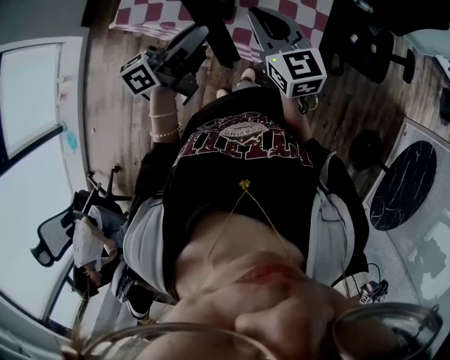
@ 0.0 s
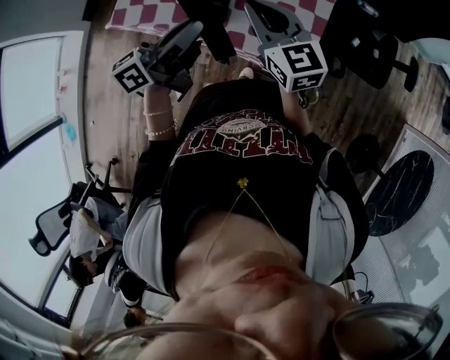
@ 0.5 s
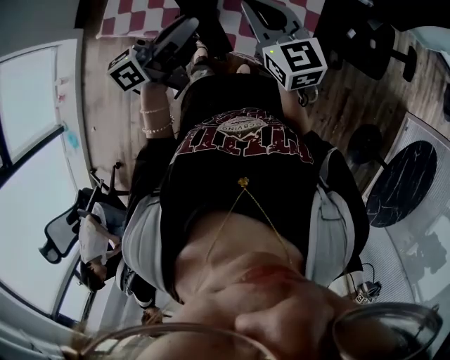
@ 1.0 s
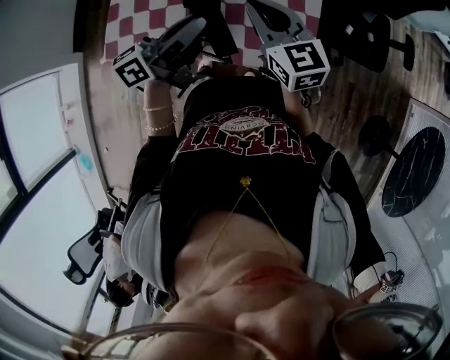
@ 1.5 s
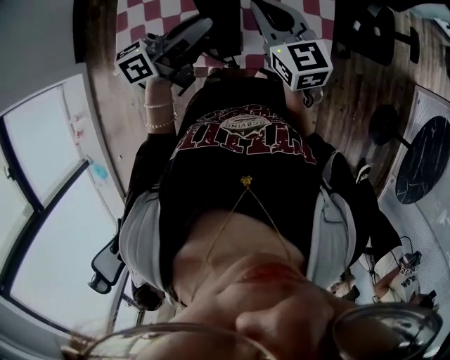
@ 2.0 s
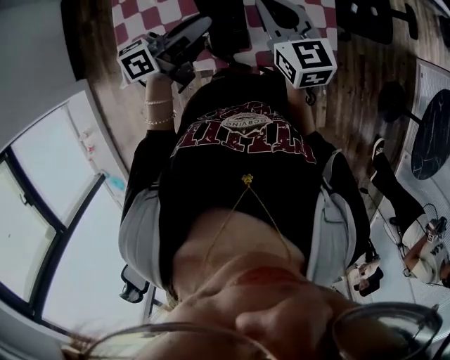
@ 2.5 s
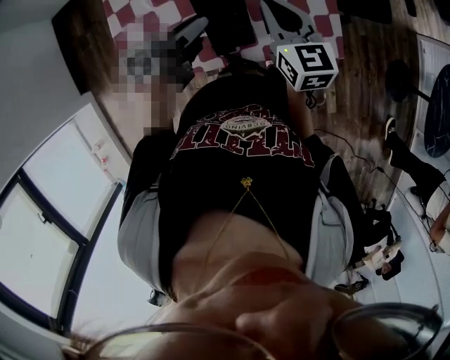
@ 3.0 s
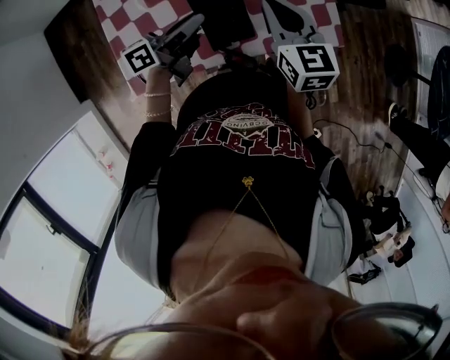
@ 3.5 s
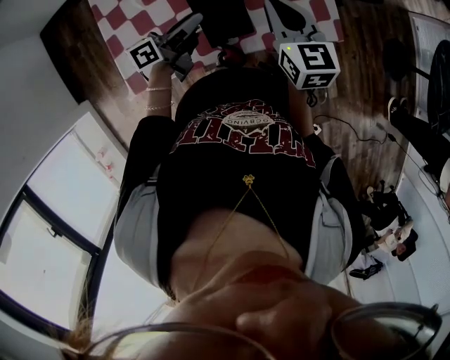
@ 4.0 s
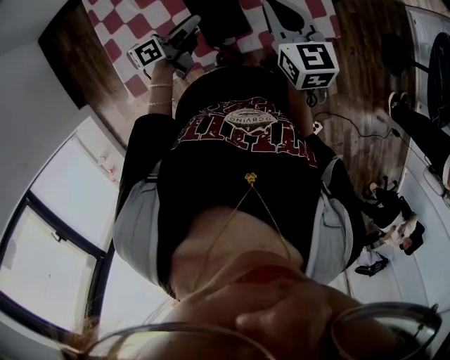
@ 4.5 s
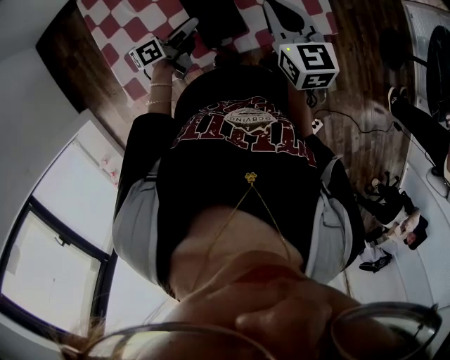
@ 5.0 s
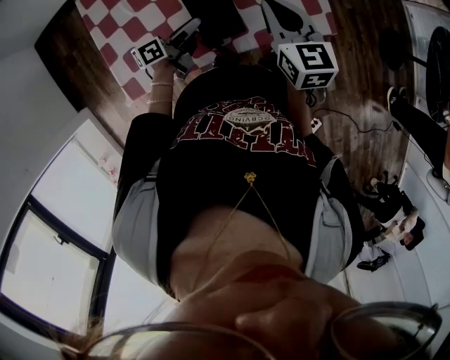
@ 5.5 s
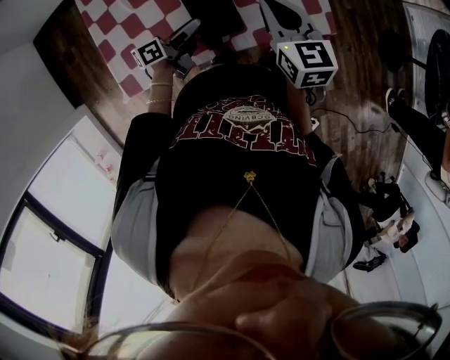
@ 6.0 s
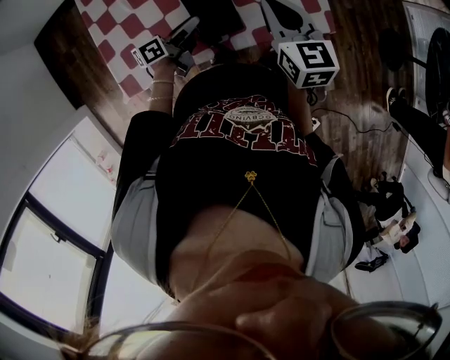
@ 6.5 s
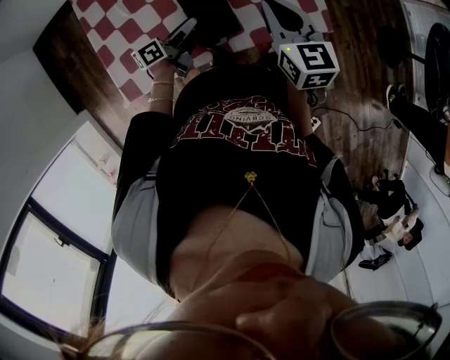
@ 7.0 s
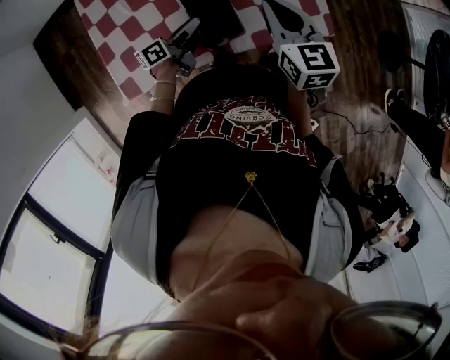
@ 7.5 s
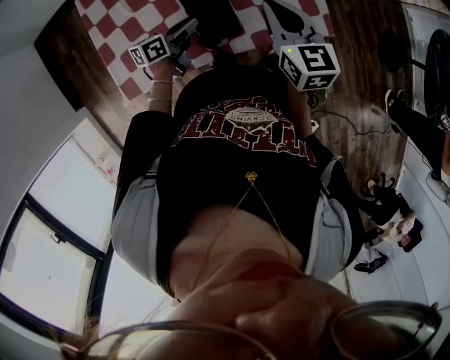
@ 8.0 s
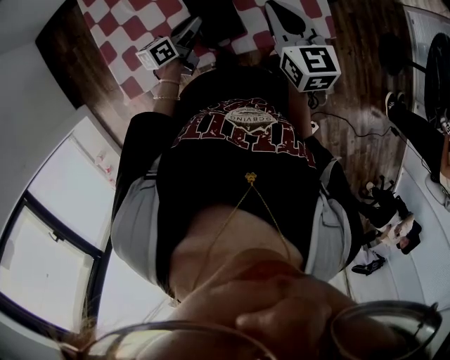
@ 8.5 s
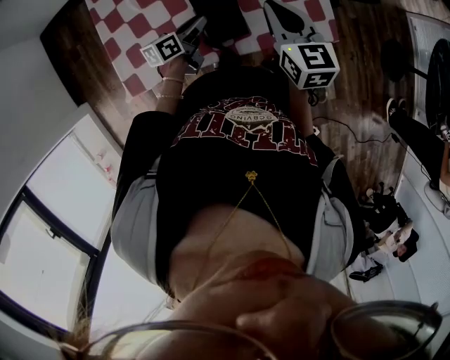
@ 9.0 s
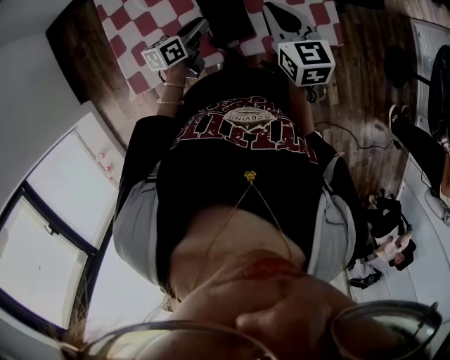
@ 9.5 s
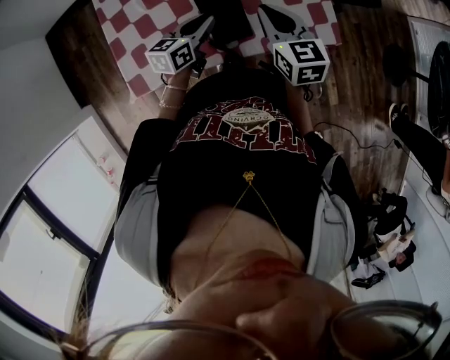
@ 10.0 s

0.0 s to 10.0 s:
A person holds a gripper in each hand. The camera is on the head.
0.0 to 2.0 s: The grippers both shift forward by roughly 10 cm.
2.0 to 4.0 s: The right gripper ends up approximately 5 cm from where it was, and changes its angle by roughly 30 degrees. Meanwhile the left gripper goes roughly 15 cm downward and to the left.
4.0 to 6.0 s: The left gripper heads downward, covering some 10 cm.
6.0 to 8.0 s: The grippers move only a little.
8.0 to 10.0 s: The left gripper goes some 5 cm upward, and rotates about 20 degrees.

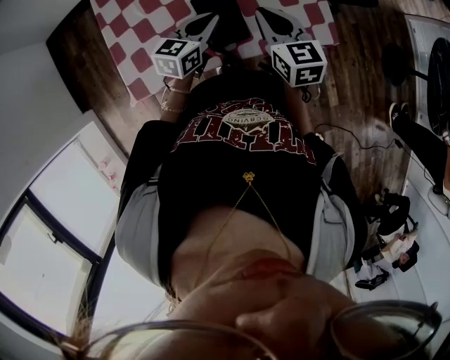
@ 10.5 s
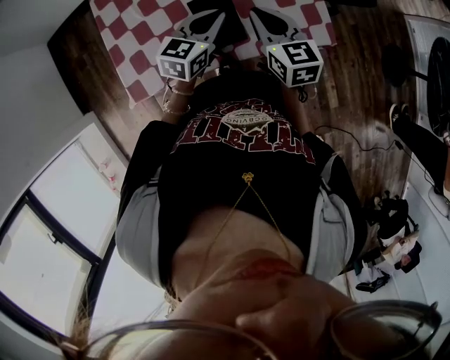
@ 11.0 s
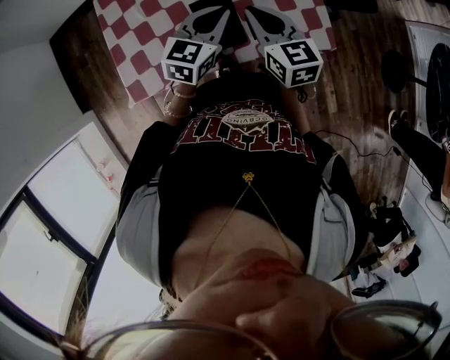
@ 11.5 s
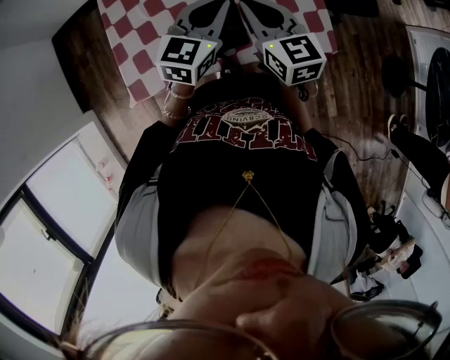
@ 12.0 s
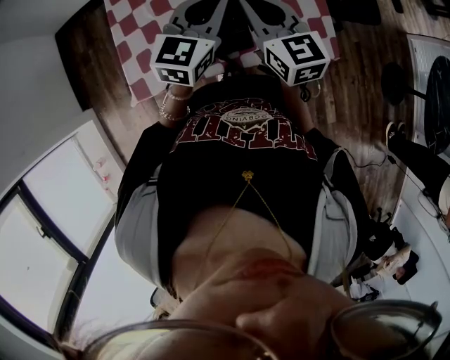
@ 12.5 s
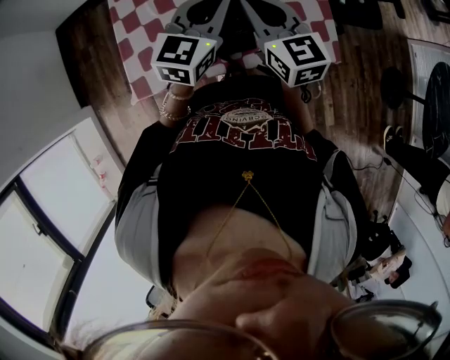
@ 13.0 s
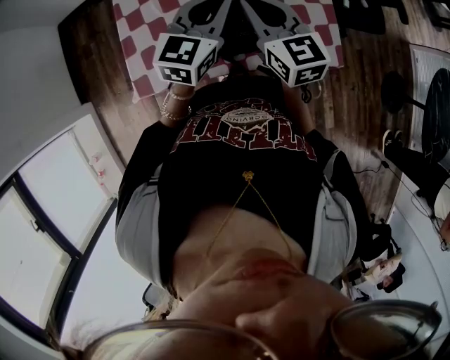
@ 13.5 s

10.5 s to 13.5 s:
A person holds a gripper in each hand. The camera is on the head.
10.5 to 12.0 s: The left gripper travels upward by some 15 cm, and turns by some 20 degrees. Meanwhile the right gripper moves upward, some 5 cm.
12.0 to 13.5 s: There are only small adjustments of the grippers.

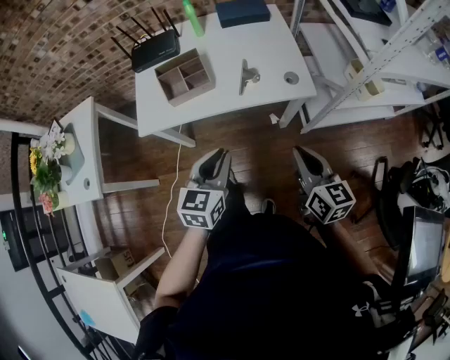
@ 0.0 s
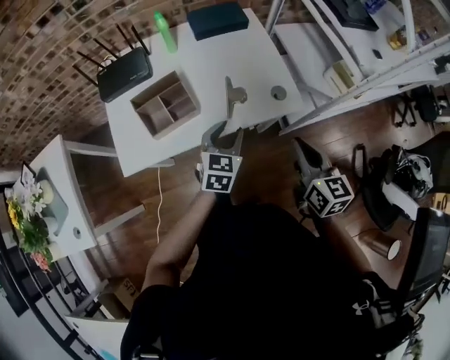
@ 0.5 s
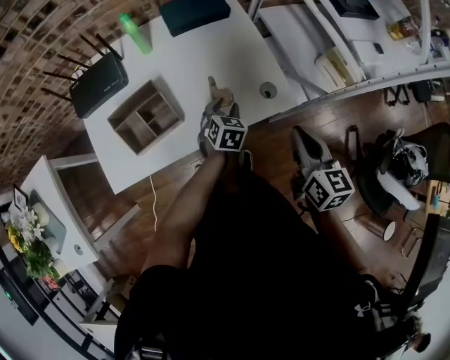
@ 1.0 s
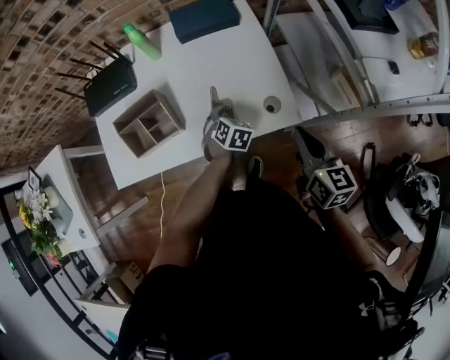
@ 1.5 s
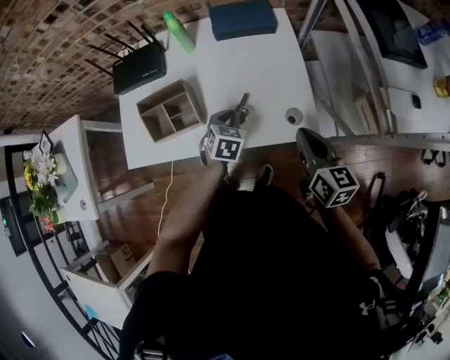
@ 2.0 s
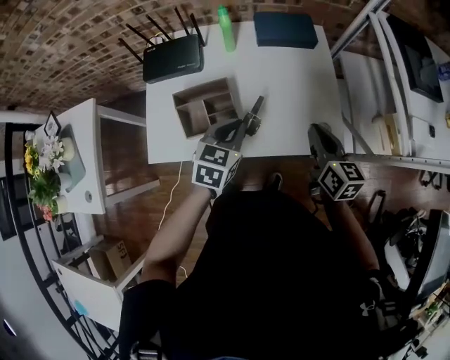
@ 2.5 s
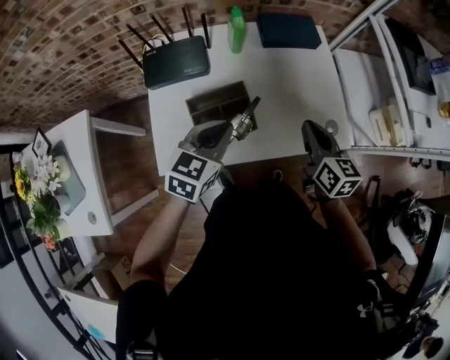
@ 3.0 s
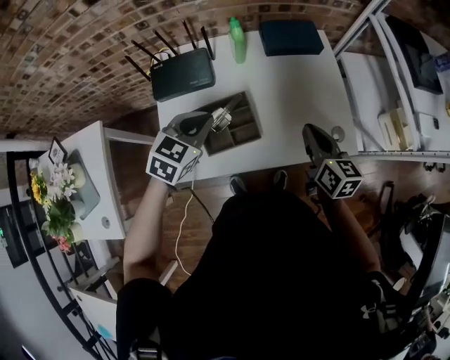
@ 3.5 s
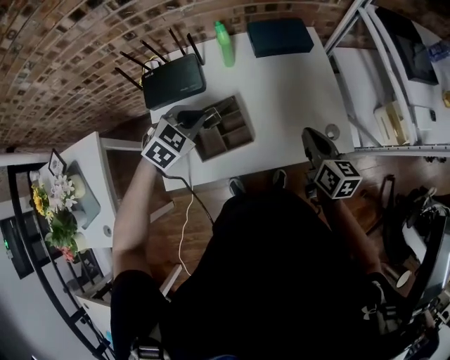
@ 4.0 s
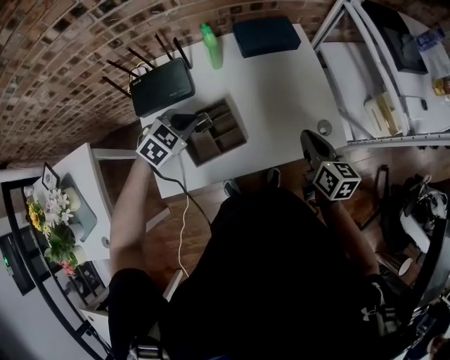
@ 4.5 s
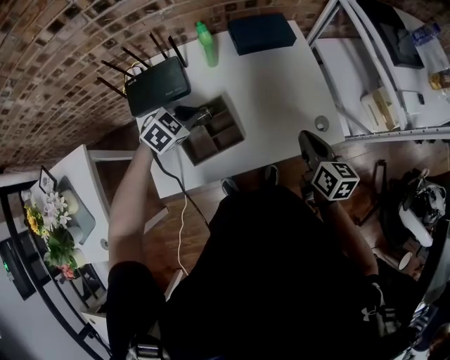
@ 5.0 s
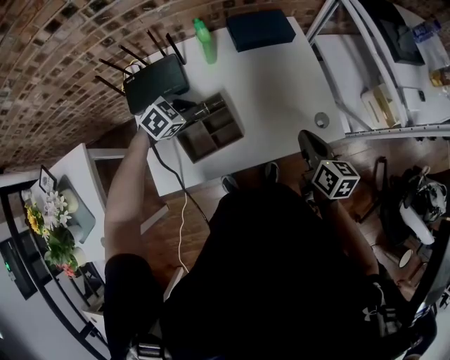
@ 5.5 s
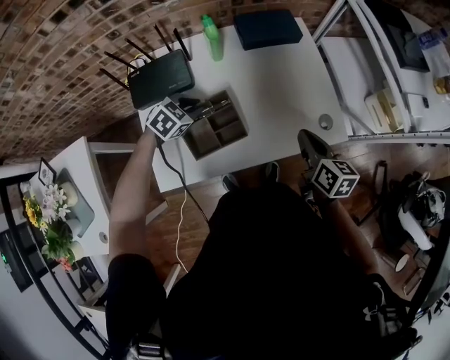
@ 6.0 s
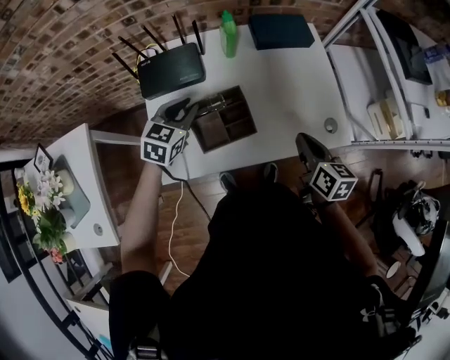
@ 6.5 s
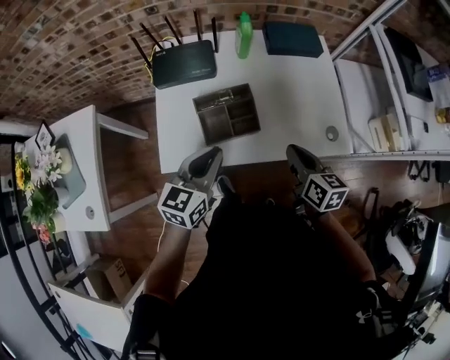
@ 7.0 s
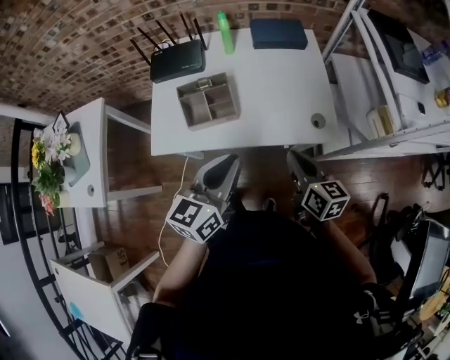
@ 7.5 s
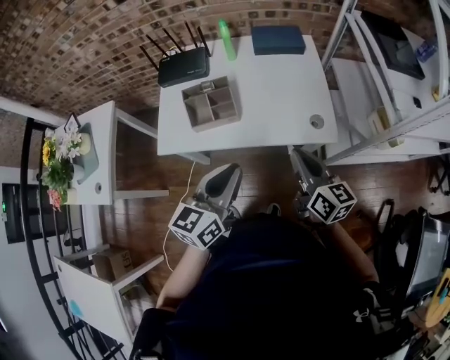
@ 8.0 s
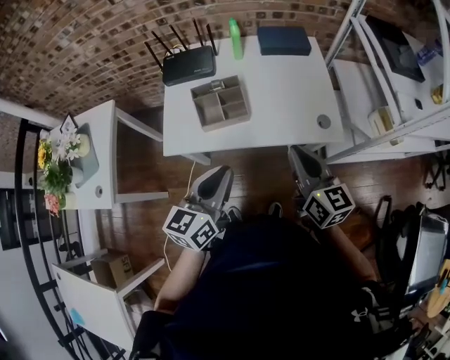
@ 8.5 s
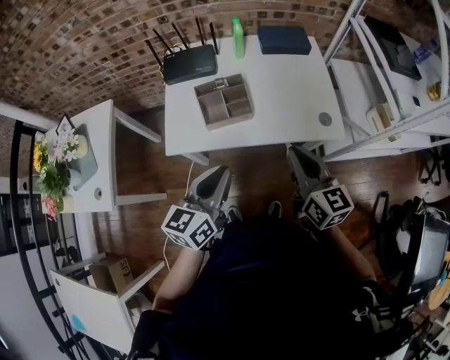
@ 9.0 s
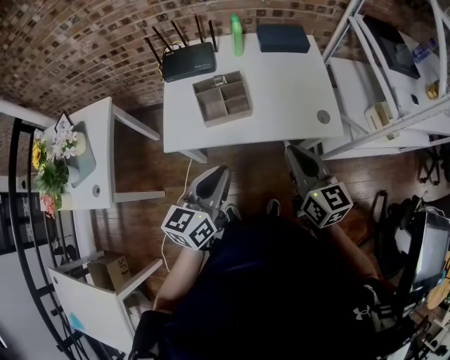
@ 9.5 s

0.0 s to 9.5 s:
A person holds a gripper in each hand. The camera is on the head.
0.0 to 2.0 s: The left gripper heads forward and downward, covering roughly 35 cm, changes its angle by approximately 30 degrees, and opens and closes again. Meanwhile the right gripper goes about 25 cm forward.
2.0 to 4.0 s: The right gripper is displaced to the left by roughly 15 cm, while the left gripper moves to the left and upward, about 25 cm, and swivels roughly 40 degrees.
4.0 to 5.5 s: The left gripper shifts approximately 10 cm downward.
5.5 to 7.5 s: The left gripper shifts by about 35 cm, and tips its fingers upward by approximately 50 degrees. The right gripper shifts by approximately 10 cm, and turns by roughly 20 degrees.
7.5 to 9.5 s: The left gripper moves to the left and backward, roughly 10 cm. The right gripper goes approximately 10 cm upward and to the left.

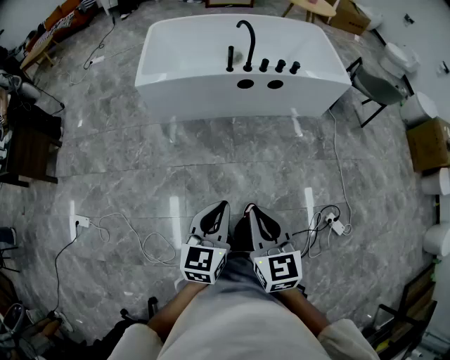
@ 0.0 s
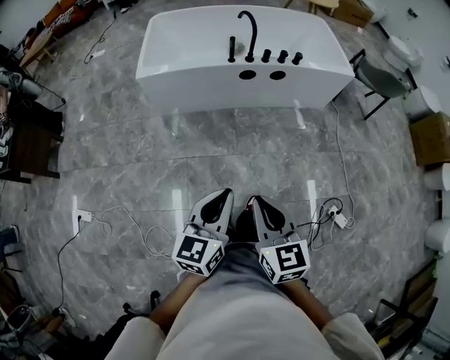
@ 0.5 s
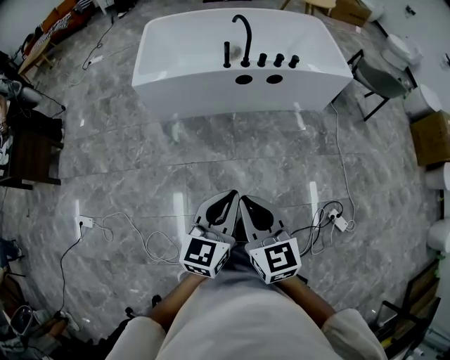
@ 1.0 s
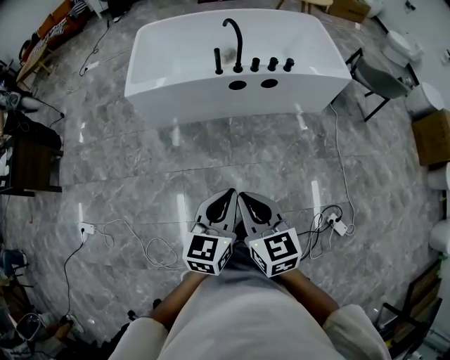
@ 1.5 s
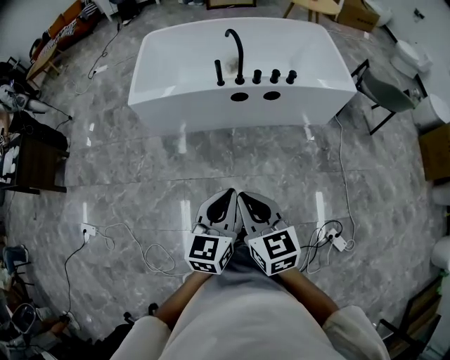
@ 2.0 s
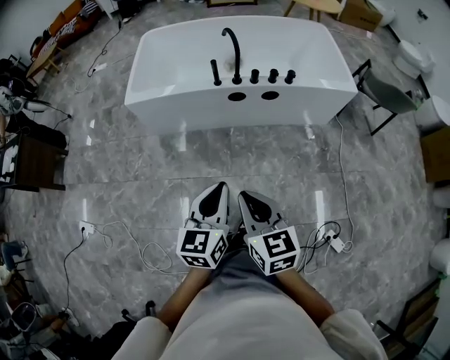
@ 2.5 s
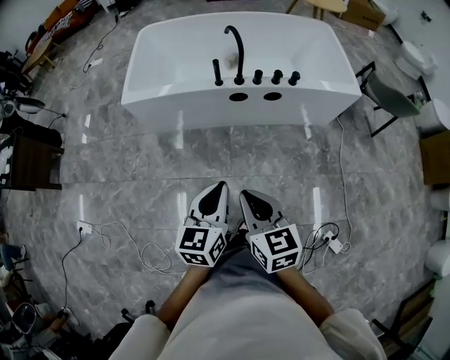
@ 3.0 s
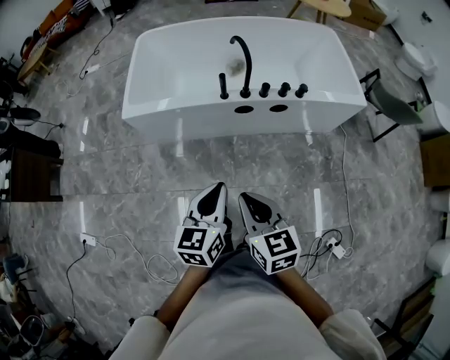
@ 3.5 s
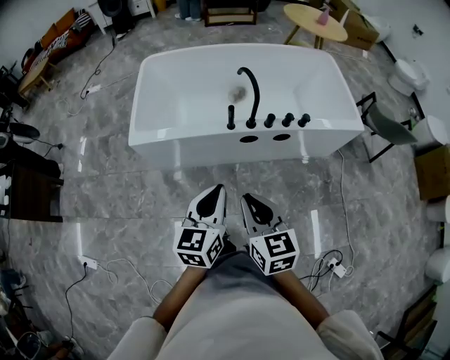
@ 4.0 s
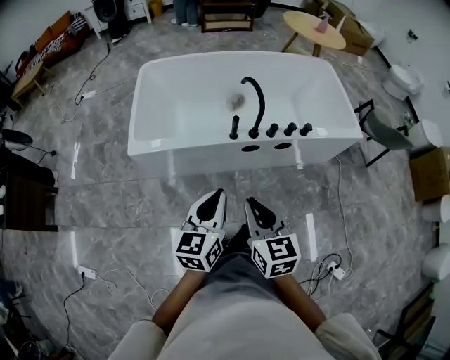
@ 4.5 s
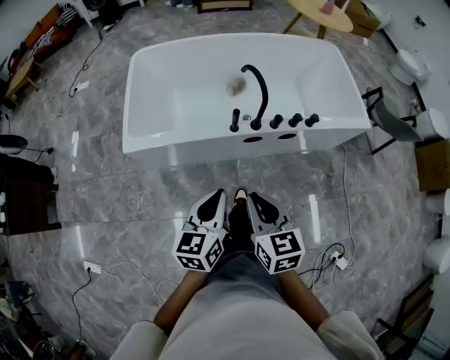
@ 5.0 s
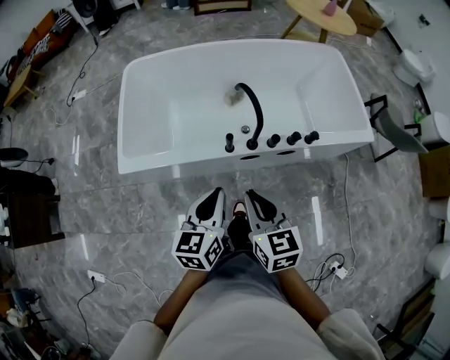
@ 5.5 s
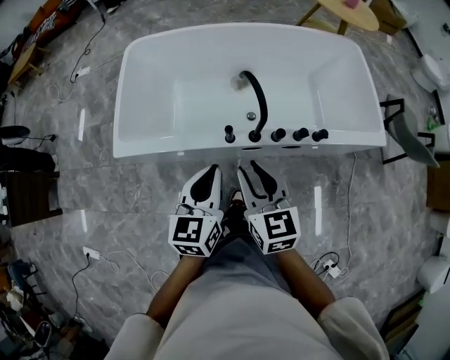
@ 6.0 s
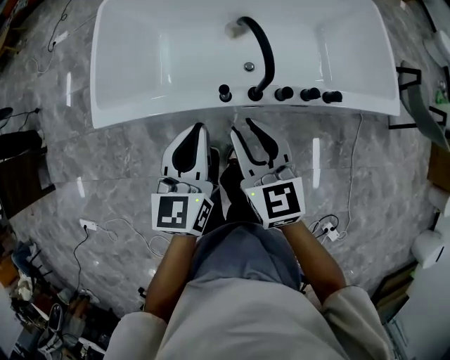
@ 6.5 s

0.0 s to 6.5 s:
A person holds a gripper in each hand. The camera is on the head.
0.0 to 2.0 s: Both grippers travel together forward and to the right, roughly 20 cm.
2.0 to 4.5 s: The left gripper moves forward and to the left, approximately 30 cm, while the right gripper shifts approximately 30 cm forward.
4.5 to 6.5 s: Both grippers travel together forward, approximately 25 cm. The right gripper opens.
